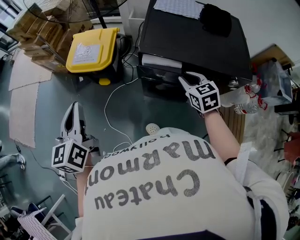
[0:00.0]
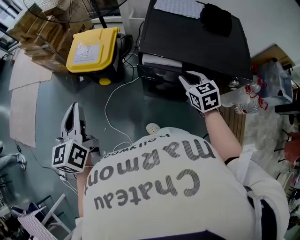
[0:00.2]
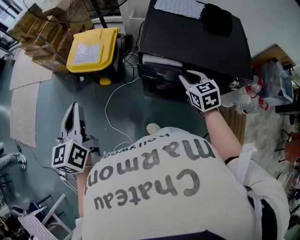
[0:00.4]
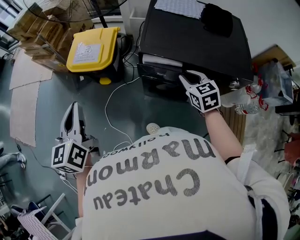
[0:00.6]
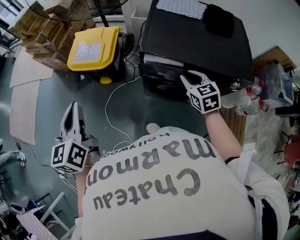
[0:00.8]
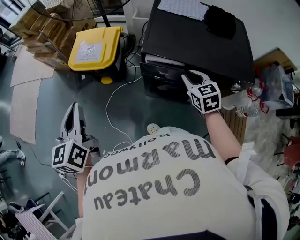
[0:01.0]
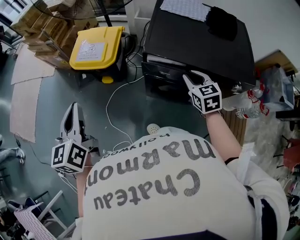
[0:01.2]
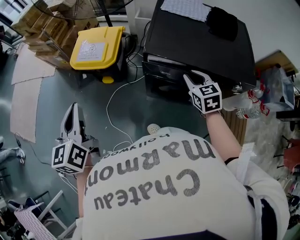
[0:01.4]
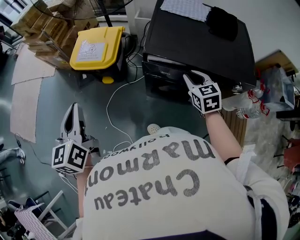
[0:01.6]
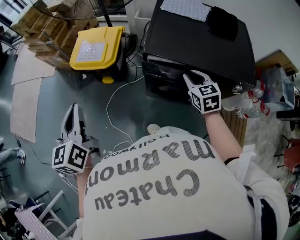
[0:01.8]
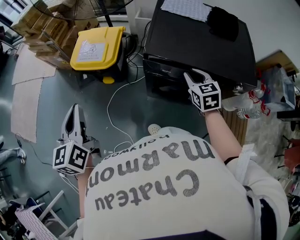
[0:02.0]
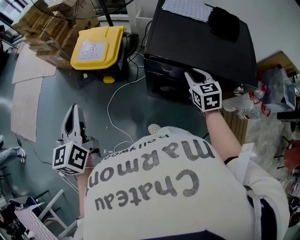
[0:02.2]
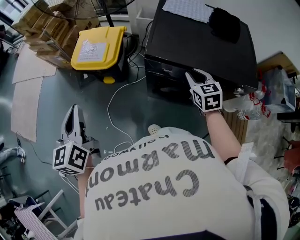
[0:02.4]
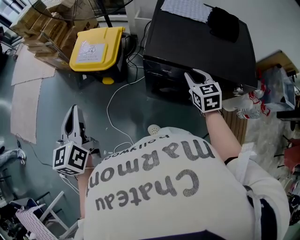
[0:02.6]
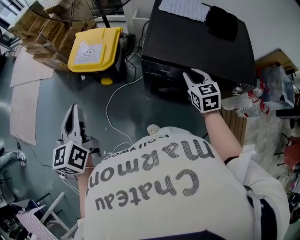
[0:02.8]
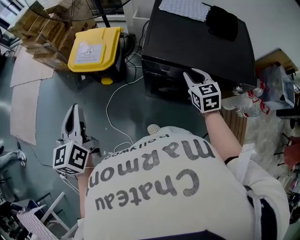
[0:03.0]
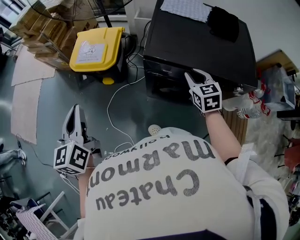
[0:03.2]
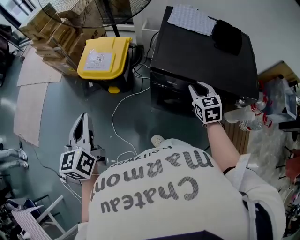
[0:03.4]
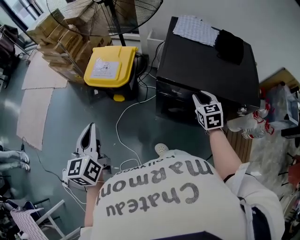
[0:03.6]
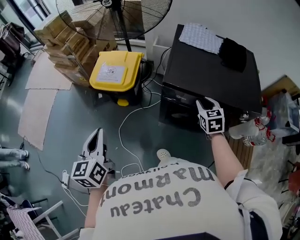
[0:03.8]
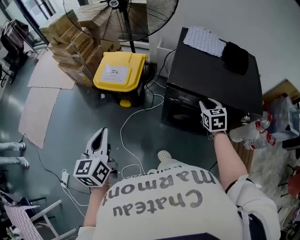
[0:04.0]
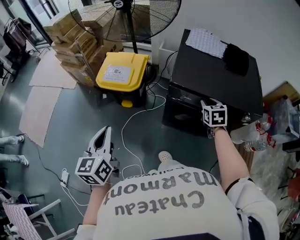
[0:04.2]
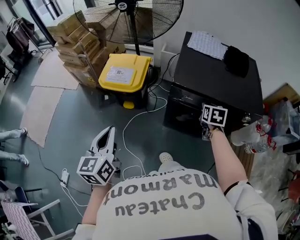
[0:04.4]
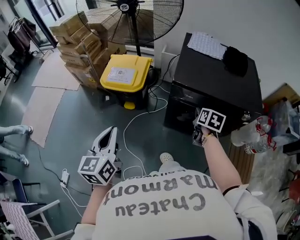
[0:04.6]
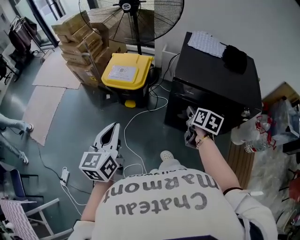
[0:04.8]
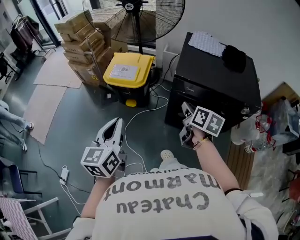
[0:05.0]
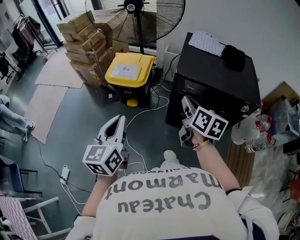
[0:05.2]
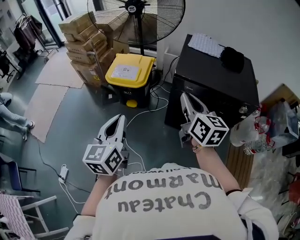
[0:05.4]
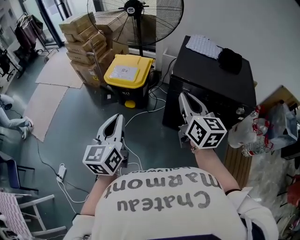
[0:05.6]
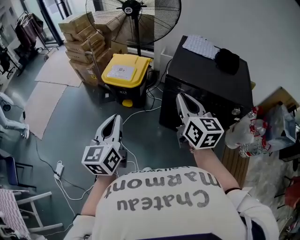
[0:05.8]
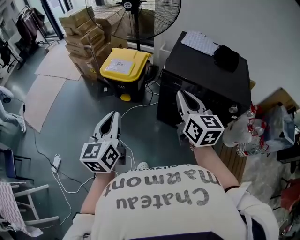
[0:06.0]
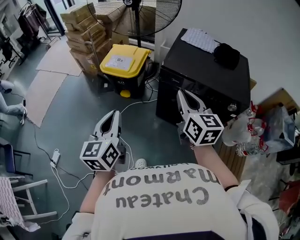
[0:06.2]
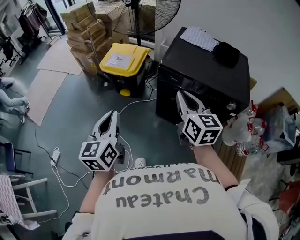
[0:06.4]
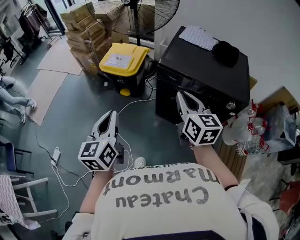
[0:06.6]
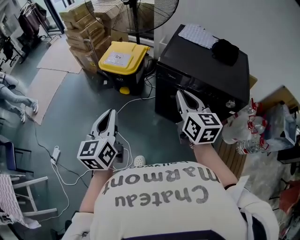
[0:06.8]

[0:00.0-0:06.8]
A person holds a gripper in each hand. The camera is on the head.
0:00.0 to 0:02.8: There are only small adjustments of the grippers.
0:02.8 to 0:04.0: The left gripper goes approximately 5 cm backward.
0:04.0 to 0:05.4: The left gripper is displaced backward and upward by approximately 10 cm, while the right gripper travels upward, backward and to the left by about 30 cm, and angles its fingers upward, by some 30 degrees.
0:05.4 to 0:06.8: The grippers both shift to the right by approximately 10 cm.

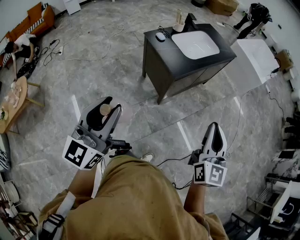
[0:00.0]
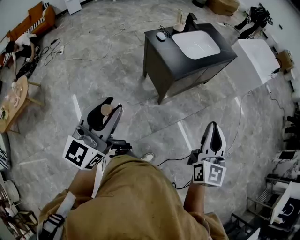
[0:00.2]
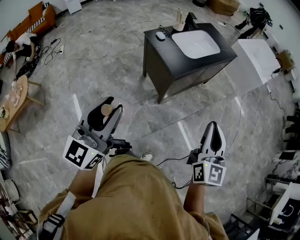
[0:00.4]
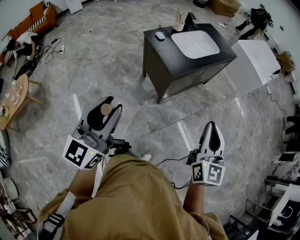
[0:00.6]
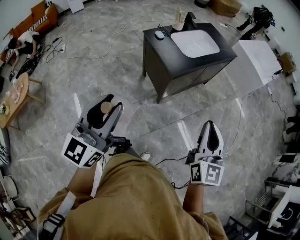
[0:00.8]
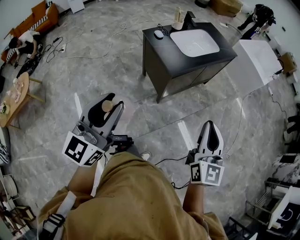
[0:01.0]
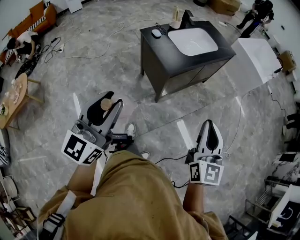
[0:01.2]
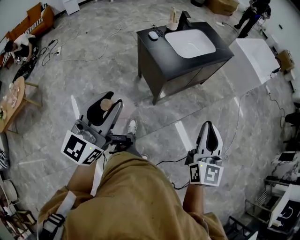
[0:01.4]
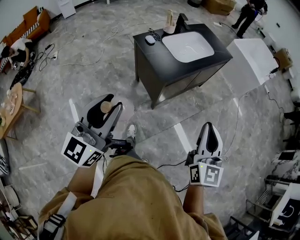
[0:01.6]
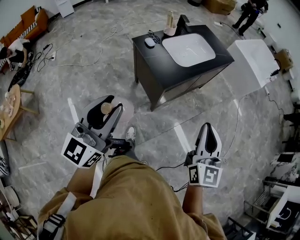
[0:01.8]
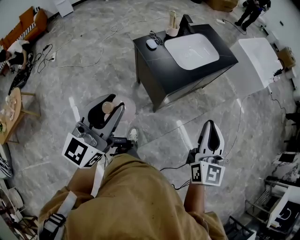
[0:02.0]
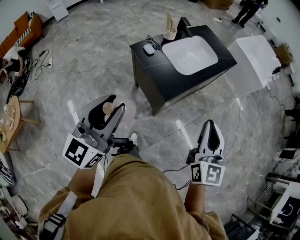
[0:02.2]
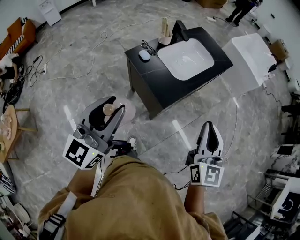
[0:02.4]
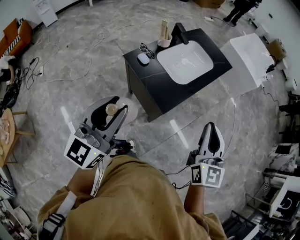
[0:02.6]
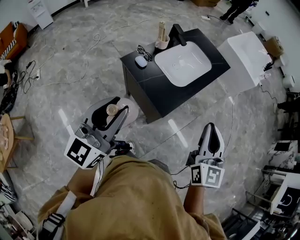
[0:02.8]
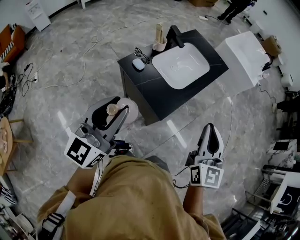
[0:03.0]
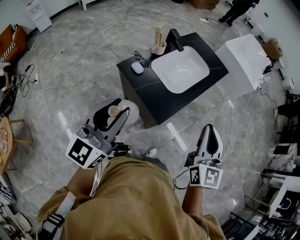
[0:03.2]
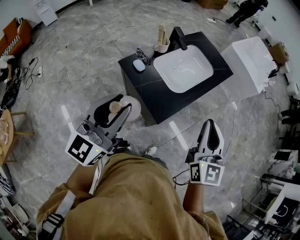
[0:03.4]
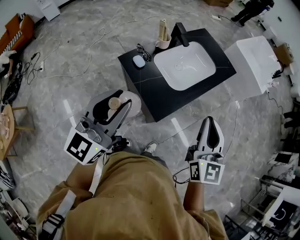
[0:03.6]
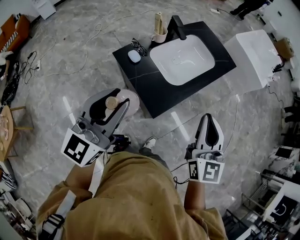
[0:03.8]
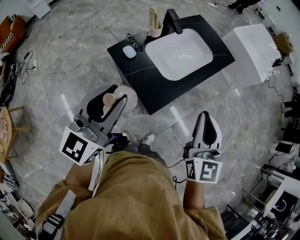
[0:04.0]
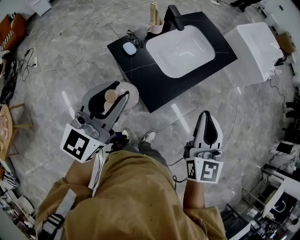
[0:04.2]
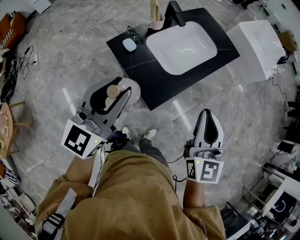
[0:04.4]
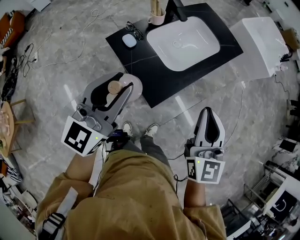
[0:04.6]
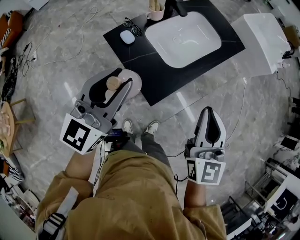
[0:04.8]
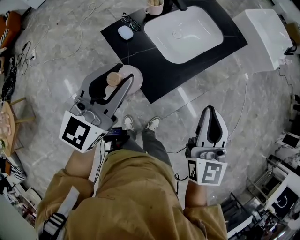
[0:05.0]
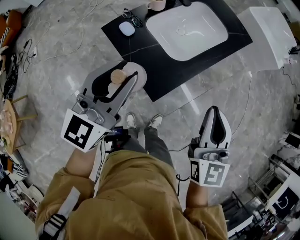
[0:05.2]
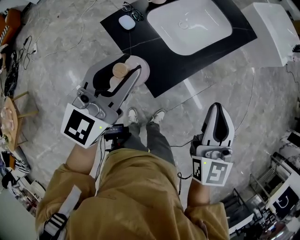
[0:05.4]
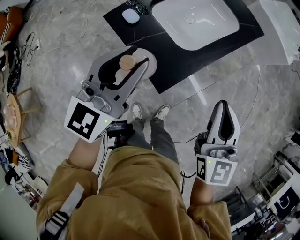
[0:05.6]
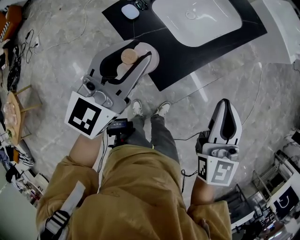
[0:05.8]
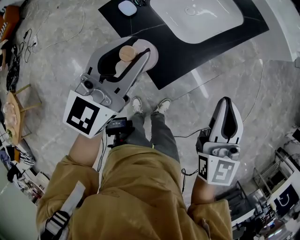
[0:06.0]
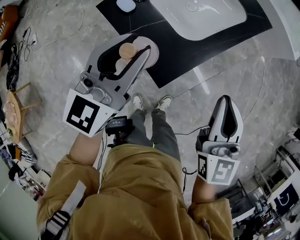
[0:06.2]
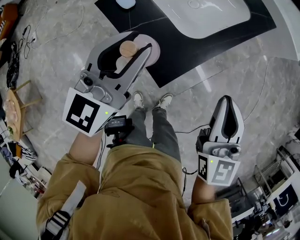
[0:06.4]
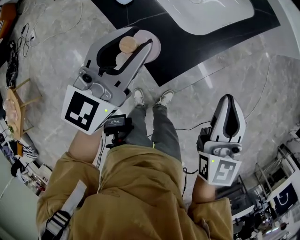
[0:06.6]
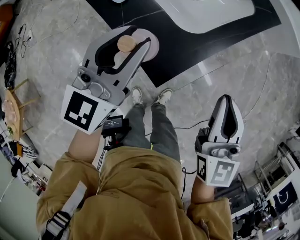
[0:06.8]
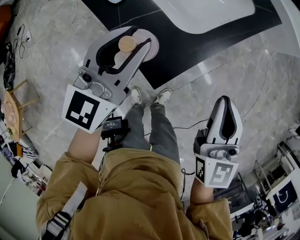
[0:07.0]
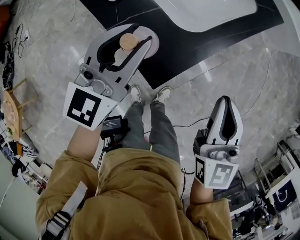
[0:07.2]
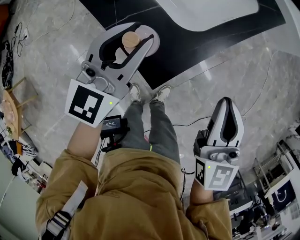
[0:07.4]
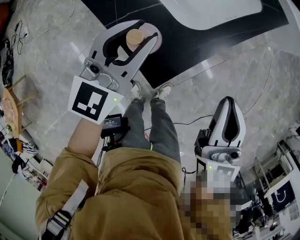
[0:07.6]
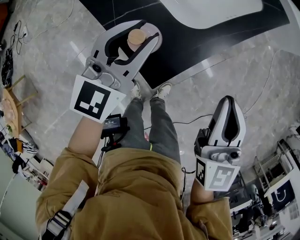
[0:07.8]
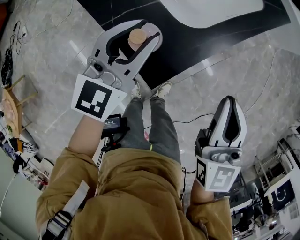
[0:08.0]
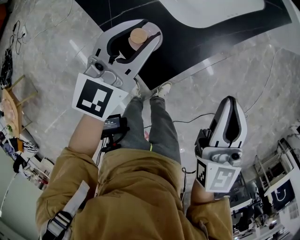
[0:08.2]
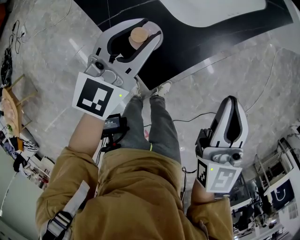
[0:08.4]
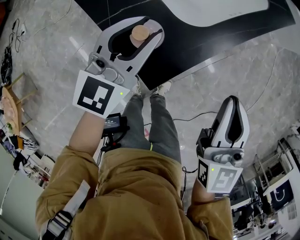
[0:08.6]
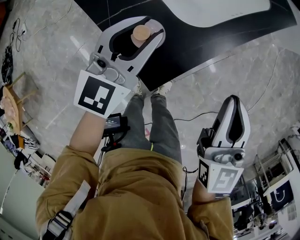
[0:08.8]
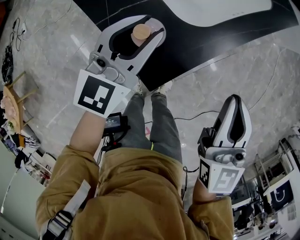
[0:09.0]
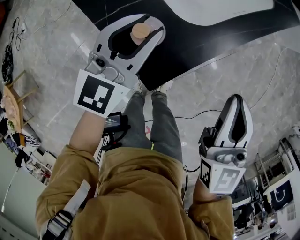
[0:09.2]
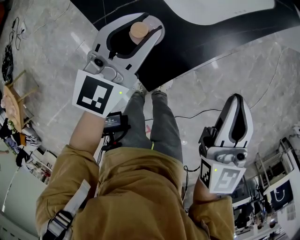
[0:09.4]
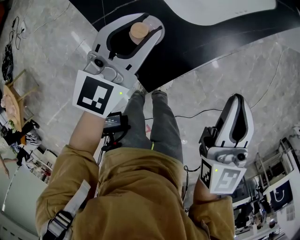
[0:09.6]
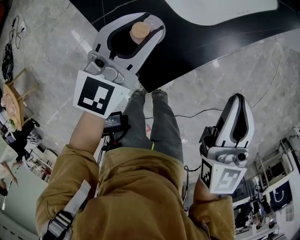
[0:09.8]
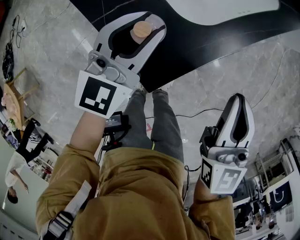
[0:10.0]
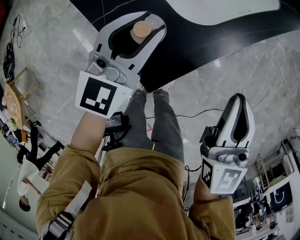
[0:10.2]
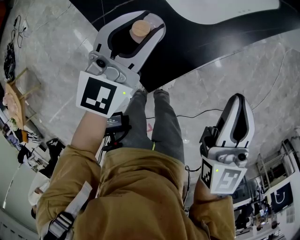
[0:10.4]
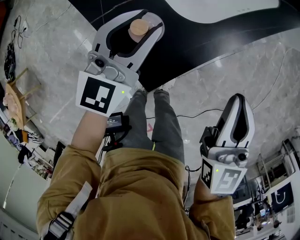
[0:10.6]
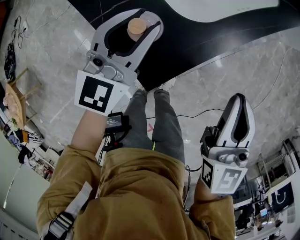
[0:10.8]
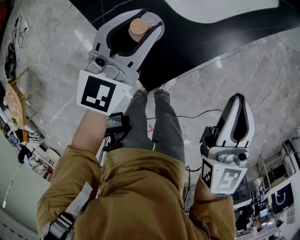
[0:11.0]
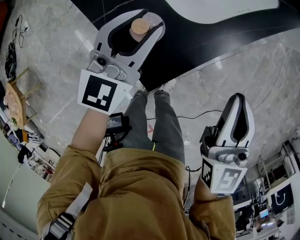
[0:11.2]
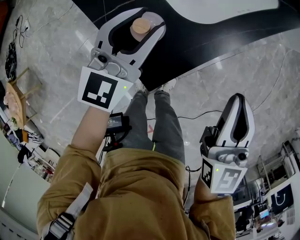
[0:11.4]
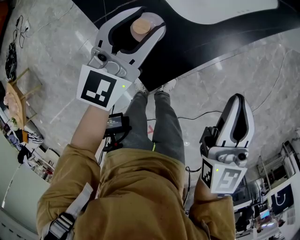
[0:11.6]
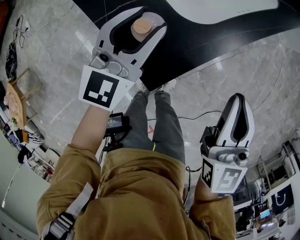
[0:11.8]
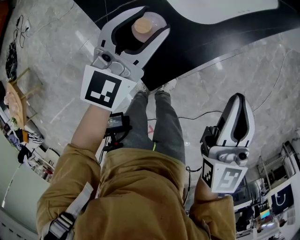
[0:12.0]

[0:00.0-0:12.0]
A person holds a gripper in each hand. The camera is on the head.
0:00.0 to 0:01.6: The right gripper shifts by some 5 cm. Meanwhile the left gripper moves forward, roughly 5 cm.
0:01.6 to 0:03.0: Both grippers move forward and to the left, roughly 20 cm.
0:03.0 to 0:04.4: The right gripper goes approximately 5 cm forward. Meanwhile the left gripper moves forward and to the right, some 10 cm.
0:04.4 to 0:06.0: The left gripper is displaced downward and forward by roughly 10 cm. Meanwhile the right gripper shifts some 5 cm downward.
0:06.0 to 0:07.6: The left gripper shifts some 10 cm downward. Meanwhile the right gripper shifts some 5 cm downward.
0:07.6 to 0:09.0: The grippers move only a little.
0:09.0 to 0:10.4: Neither gripper changes place.
0:10.4 to 0:12.0: Both grippers stay put.

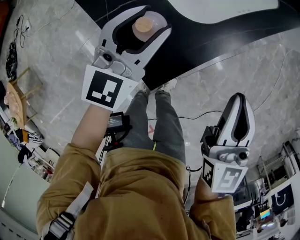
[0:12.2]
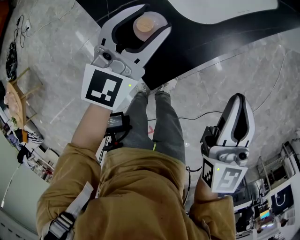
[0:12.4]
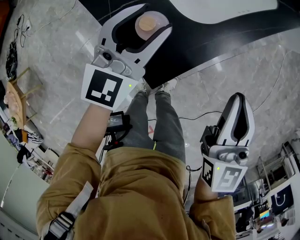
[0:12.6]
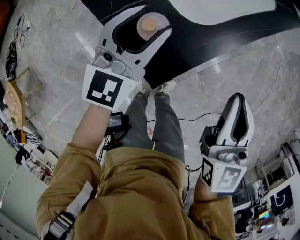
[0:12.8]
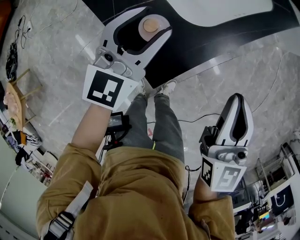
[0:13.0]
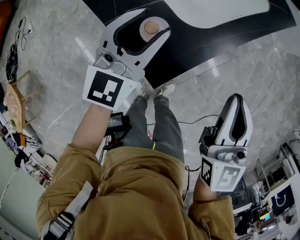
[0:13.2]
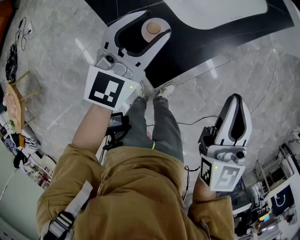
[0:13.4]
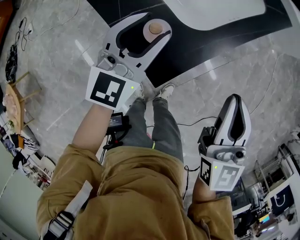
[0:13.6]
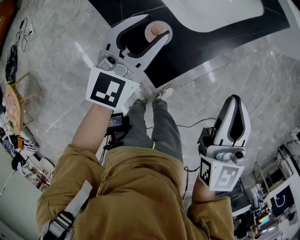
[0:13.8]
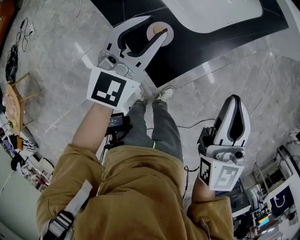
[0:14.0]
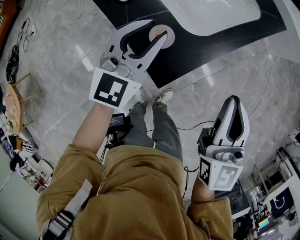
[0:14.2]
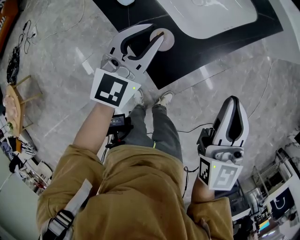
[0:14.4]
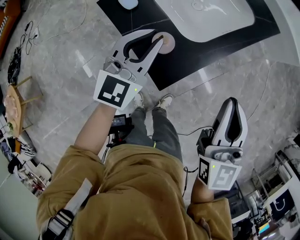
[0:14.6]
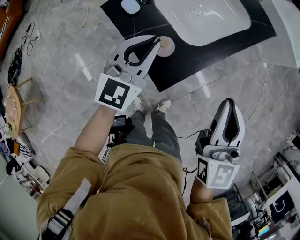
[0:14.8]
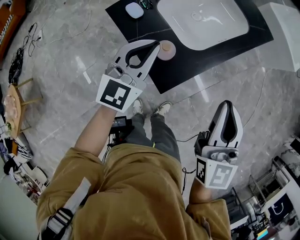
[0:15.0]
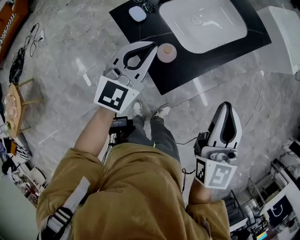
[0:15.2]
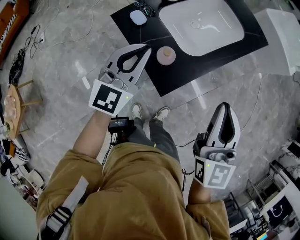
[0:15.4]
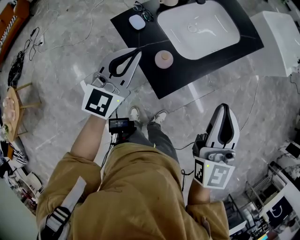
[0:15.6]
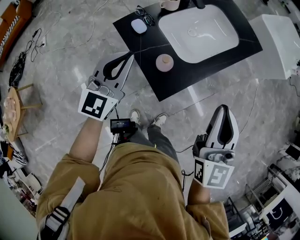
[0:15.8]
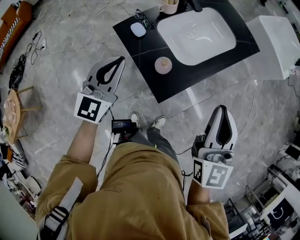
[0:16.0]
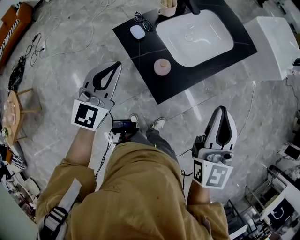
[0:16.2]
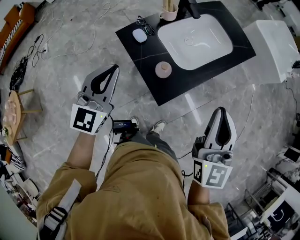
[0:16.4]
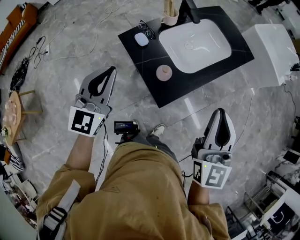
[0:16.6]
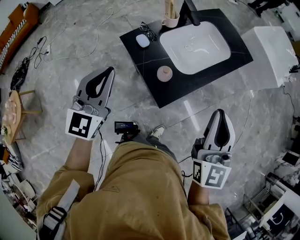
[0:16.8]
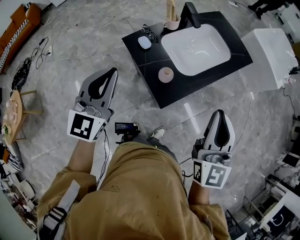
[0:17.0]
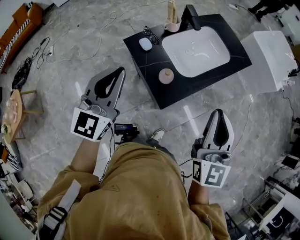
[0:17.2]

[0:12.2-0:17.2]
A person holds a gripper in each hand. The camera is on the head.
0:12.2 to 0:13.8: The grippers move only a little.
0:13.8 to 0:15.6: The right gripper goes roughly 10 cm upward, while the left gripper moves upward and to the left, some 10 cm, and closes its fingers.
0:15.6 to 0:17.2: The left gripper travels upward and backward by approximately 15 cm; the right gripper is displaced upward by roughly 5 cm.
